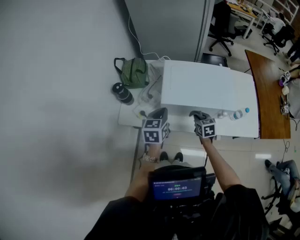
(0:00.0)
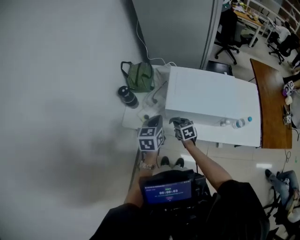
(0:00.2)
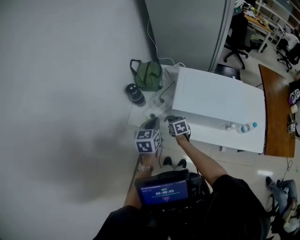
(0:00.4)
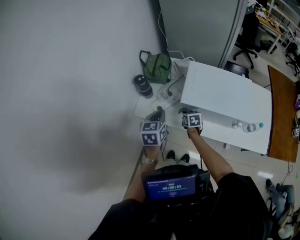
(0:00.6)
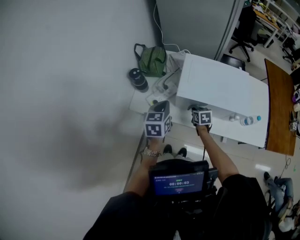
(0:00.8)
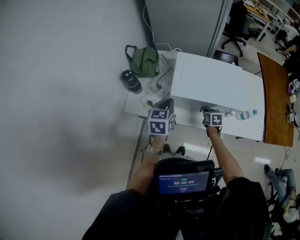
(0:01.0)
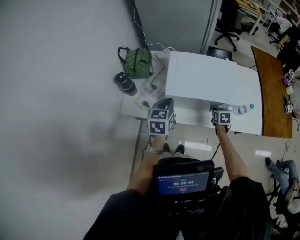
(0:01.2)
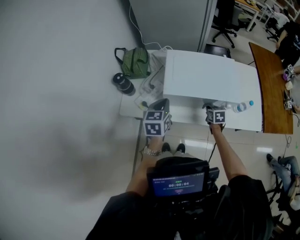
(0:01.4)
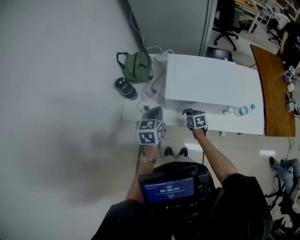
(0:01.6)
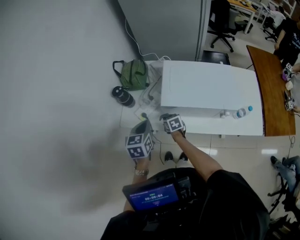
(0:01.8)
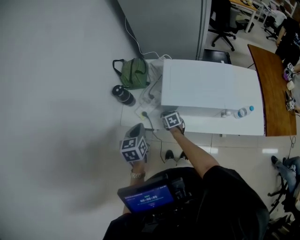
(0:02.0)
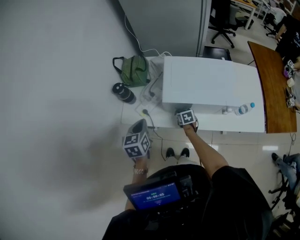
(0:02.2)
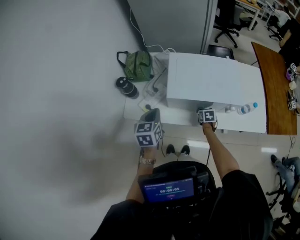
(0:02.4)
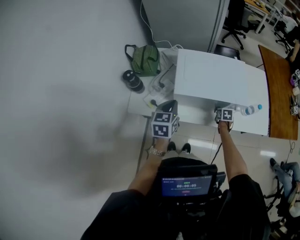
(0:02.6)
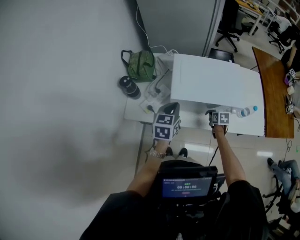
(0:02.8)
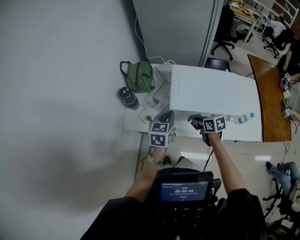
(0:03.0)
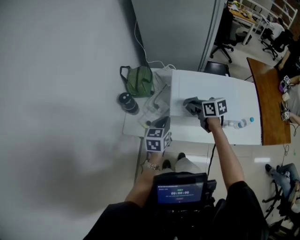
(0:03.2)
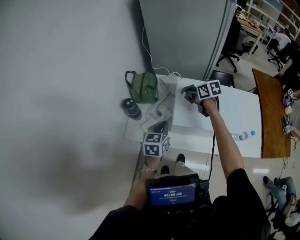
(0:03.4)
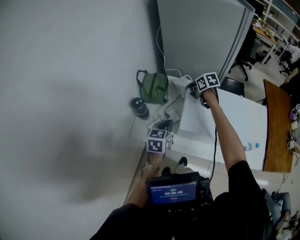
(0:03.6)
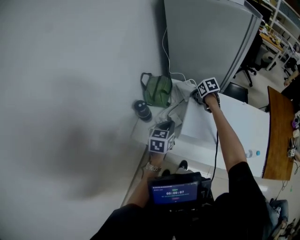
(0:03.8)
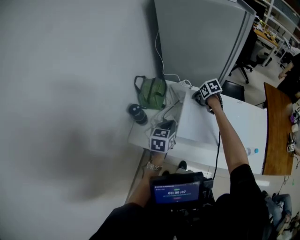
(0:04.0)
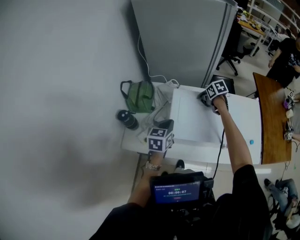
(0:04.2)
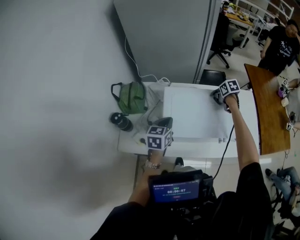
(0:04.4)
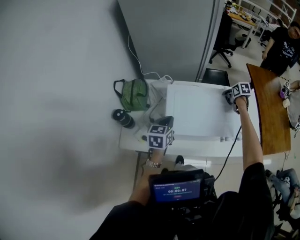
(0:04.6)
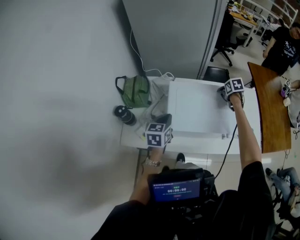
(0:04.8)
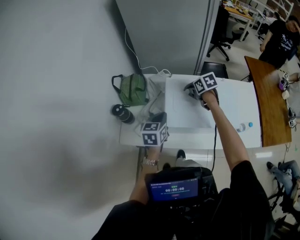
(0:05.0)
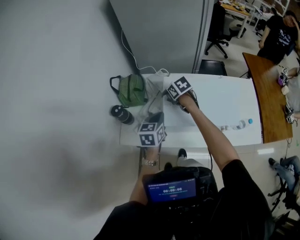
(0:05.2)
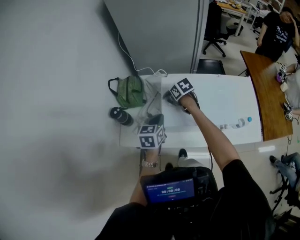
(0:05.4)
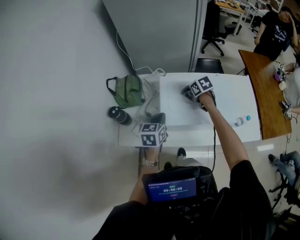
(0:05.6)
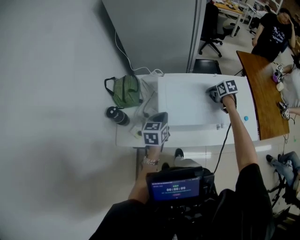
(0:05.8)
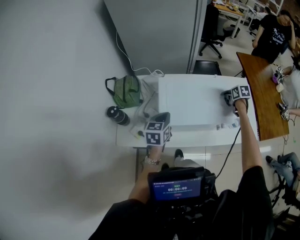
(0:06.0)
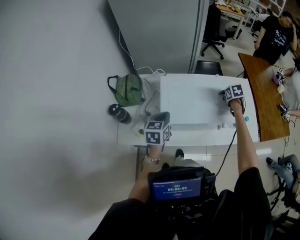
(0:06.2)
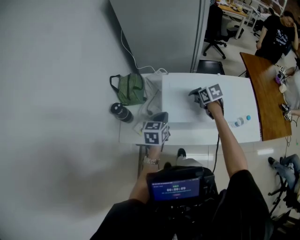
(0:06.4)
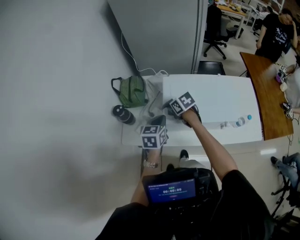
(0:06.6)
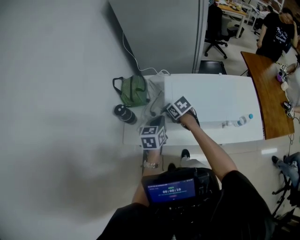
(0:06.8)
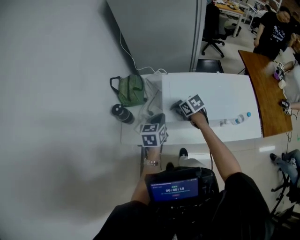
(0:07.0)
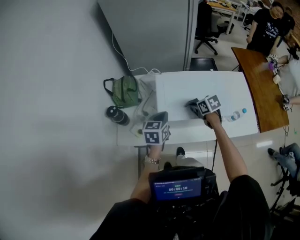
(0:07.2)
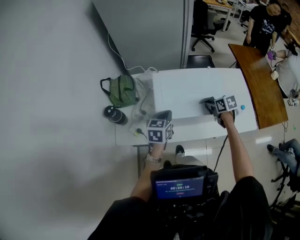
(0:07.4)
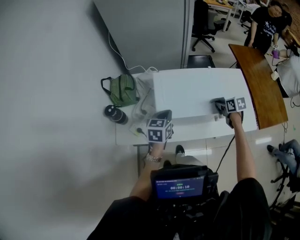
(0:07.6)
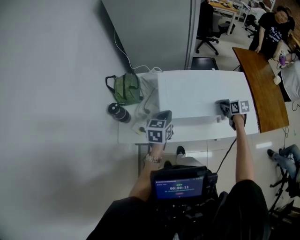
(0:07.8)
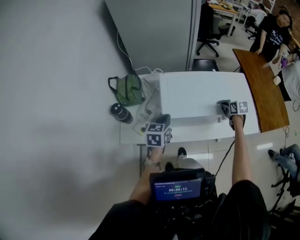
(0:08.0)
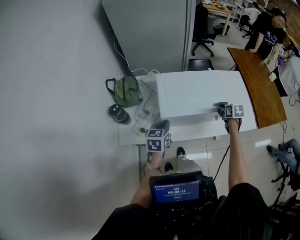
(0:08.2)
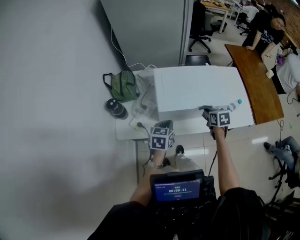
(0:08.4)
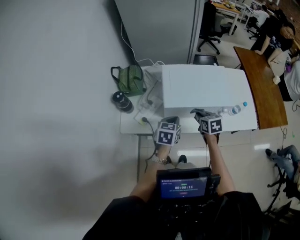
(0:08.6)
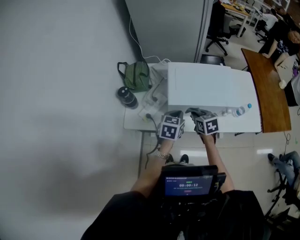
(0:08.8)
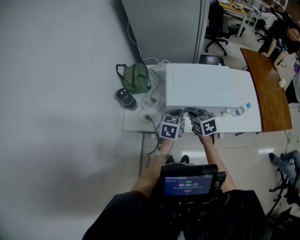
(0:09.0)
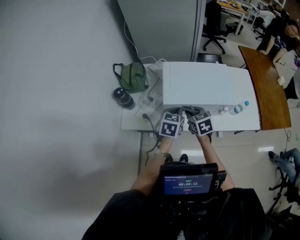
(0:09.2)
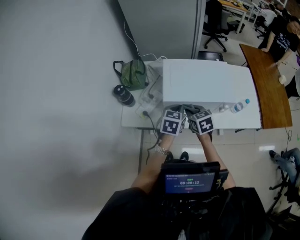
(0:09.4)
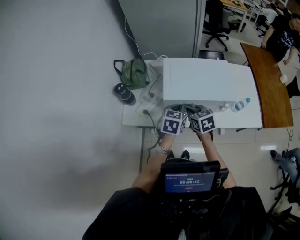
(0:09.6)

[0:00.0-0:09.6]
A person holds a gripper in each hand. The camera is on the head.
0:00.0 to 0:01.6: The right gripper swings left and right, about 30 cm each way, with 2 reversals. Meanwhile the left gripper moves left and right over roughly 10 cm, changing direction 2 times.
0:01.6 to 0:03.2: The right gripper swings left and right, approximately 30 cm each way, with 2 reversals, and changes its angle by about 20 degrees. The left gripper goes left and right, roughly 15 cm each way, reversing 2 times.
0:03.2 to 0:04.8: The right gripper ends up approximately 35 cm from where it was, and tips its fingers downward by about 30 degrees, while the left gripper changes place by approximately 10 cm.
0:06.4 to 0:08.0: The right gripper moves roughly 20 cm, and turns by approximately 20 degrees.
0:08.0 to 0:09.6: The left gripper heads to the right and backward, covering about 10 cm. The right gripper shifts about 30 cm to the left and backward, and changes its angle by approximately 30 degrees.

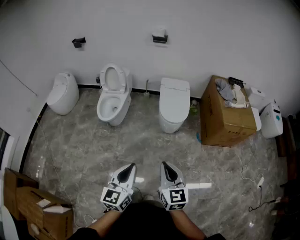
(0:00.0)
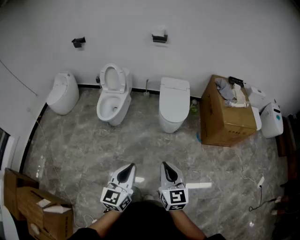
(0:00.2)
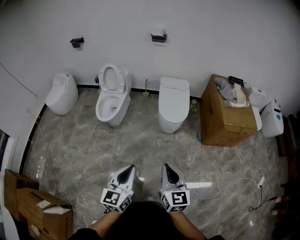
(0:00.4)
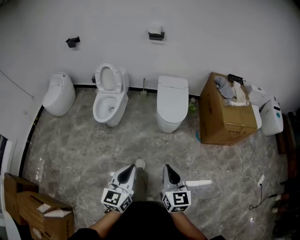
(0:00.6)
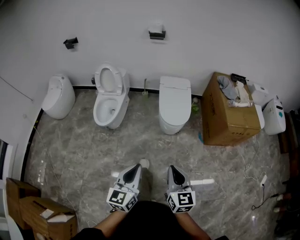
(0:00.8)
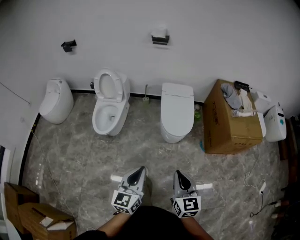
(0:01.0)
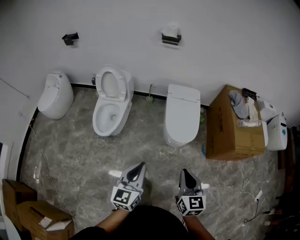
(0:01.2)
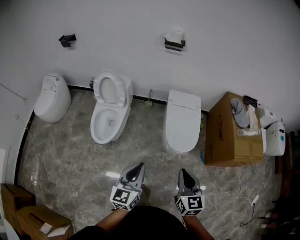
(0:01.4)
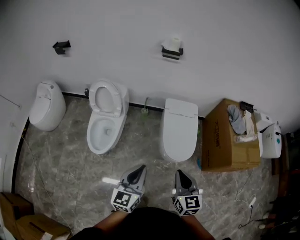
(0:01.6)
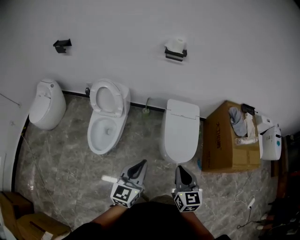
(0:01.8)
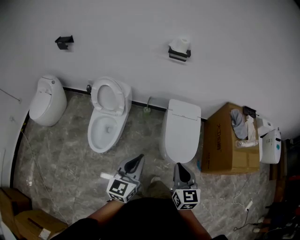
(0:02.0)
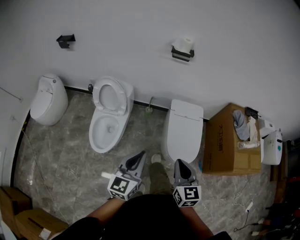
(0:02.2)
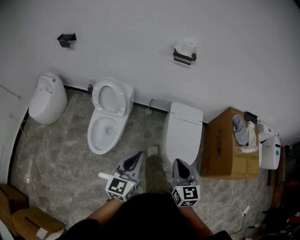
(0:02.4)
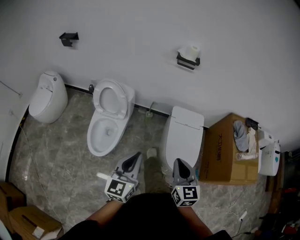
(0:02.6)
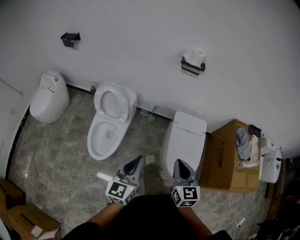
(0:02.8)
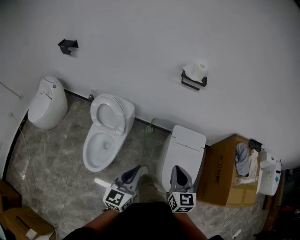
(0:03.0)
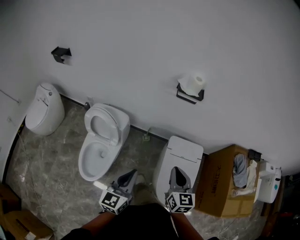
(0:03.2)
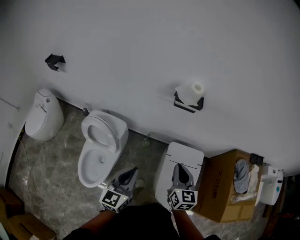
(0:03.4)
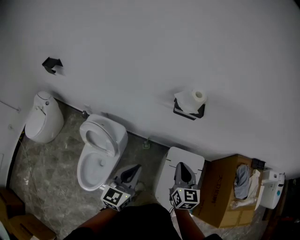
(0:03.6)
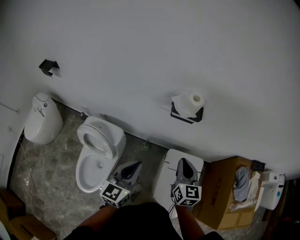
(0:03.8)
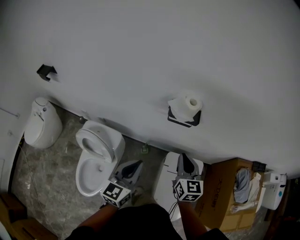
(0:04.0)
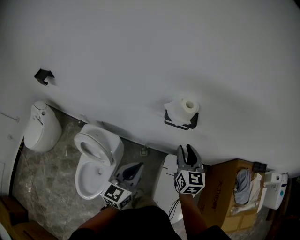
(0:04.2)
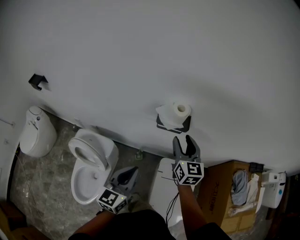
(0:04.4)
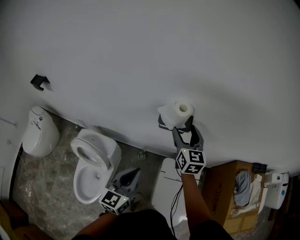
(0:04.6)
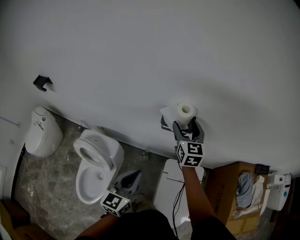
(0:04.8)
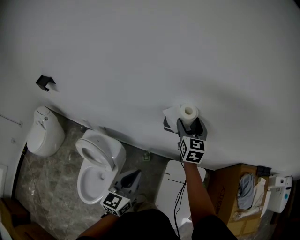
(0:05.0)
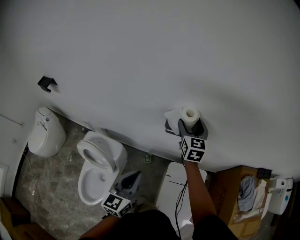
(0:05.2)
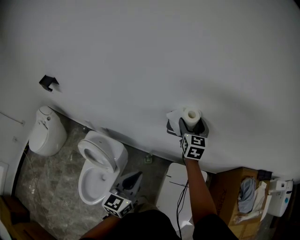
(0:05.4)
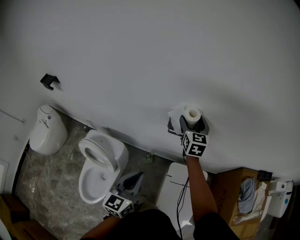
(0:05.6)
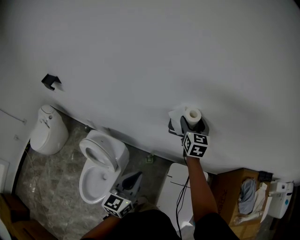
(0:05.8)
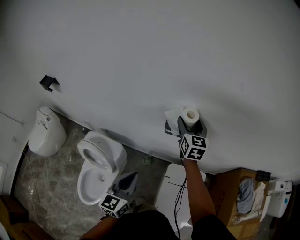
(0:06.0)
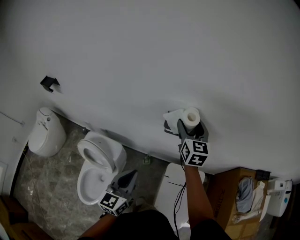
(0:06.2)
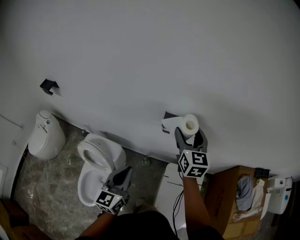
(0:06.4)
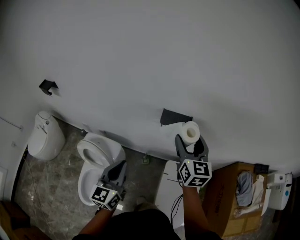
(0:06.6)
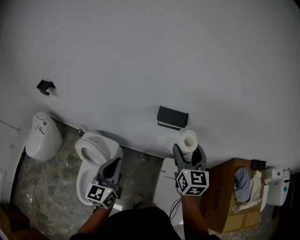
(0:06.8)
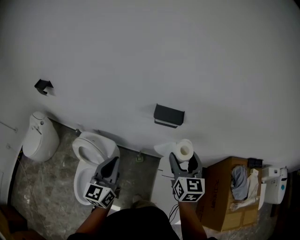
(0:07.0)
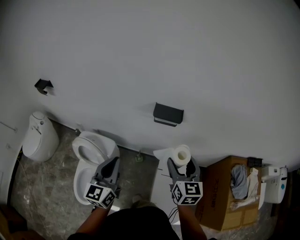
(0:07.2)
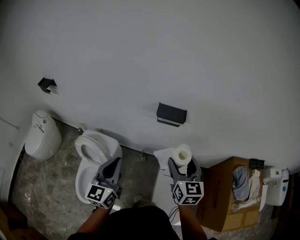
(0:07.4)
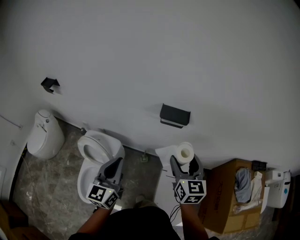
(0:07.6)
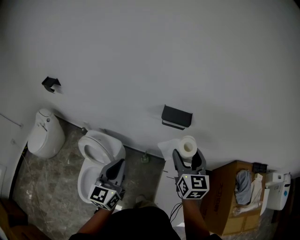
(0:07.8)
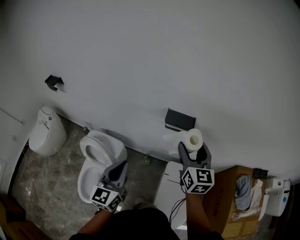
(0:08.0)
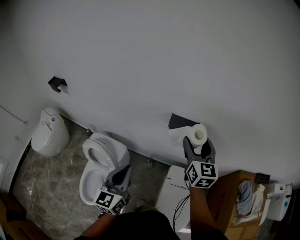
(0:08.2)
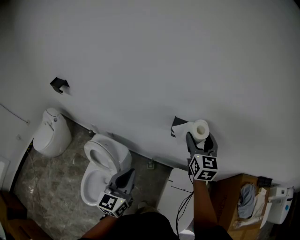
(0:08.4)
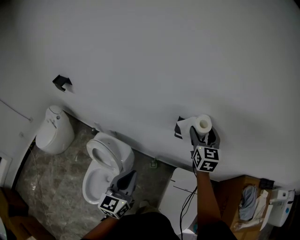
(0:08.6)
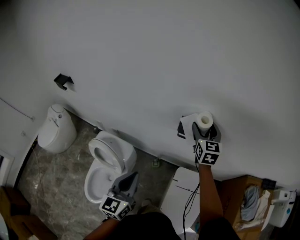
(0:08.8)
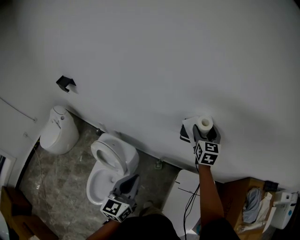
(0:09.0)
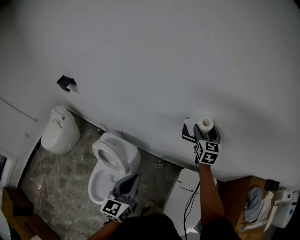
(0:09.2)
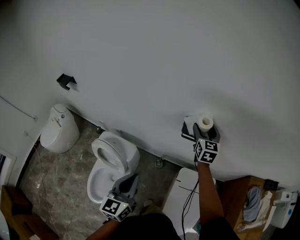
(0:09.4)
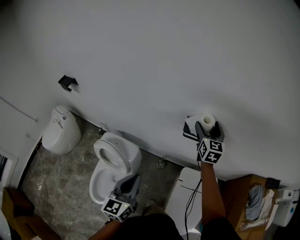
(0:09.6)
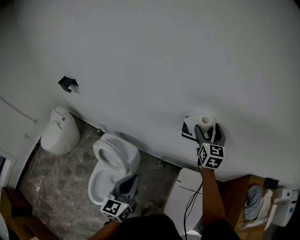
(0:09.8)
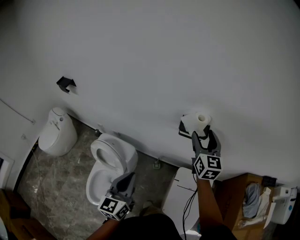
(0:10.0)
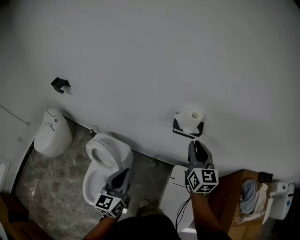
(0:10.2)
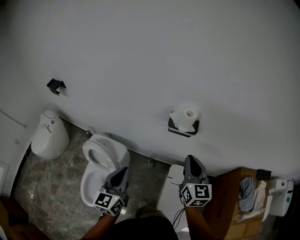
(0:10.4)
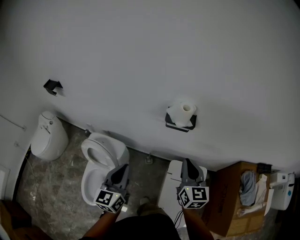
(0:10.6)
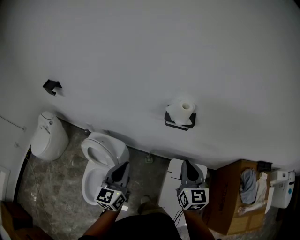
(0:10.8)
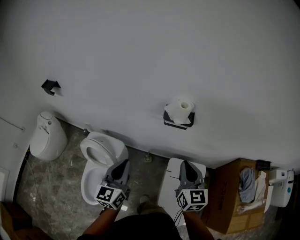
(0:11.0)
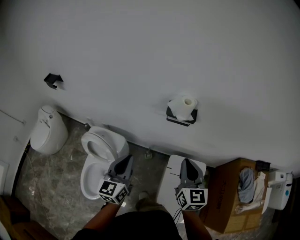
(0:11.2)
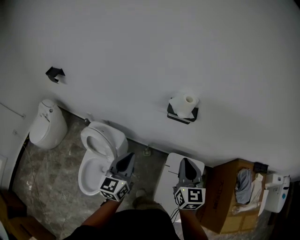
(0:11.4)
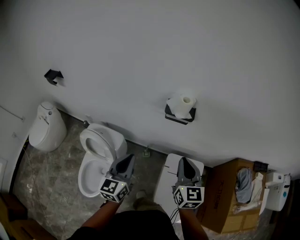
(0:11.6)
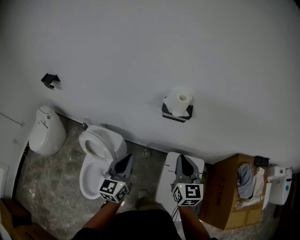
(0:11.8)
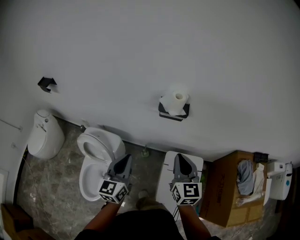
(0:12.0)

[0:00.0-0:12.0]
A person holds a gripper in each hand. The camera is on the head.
0:00.0 to 0:01.6: Both grippers are carried forward, approximately 50 cm.
0:01.6 to 0:03.0: The grippers both shift forward by some 30 cm.
0:03.0 to 0:04.4: The grippers both shift forward by about 40 cm. The right gripper opens its fingers.
0:04.4 to 0:06.0: The right gripper is displaced forward by some 10 cm.
0:06.0 to 0:07.6: The left gripper shifts roughly 10 cm upward and backward; the right gripper goes some 25 cm backward.
0:07.6 to 0:09.0: The left gripper ends up approximately 5 cm from where it was. Meanwhile the right gripper travels forward by some 25 cm.
0:09.0 to 0:10.4: The right gripper heads backward, covering some 25 cm, and closes its fingers.
0:10.4 to 0:12.0: The right gripper shifts about 5 cm backward.

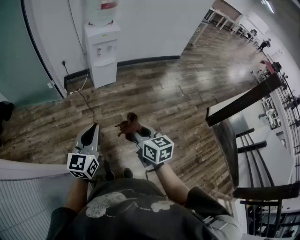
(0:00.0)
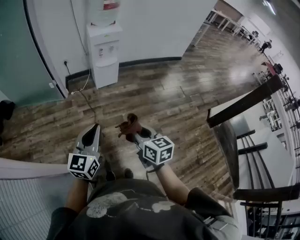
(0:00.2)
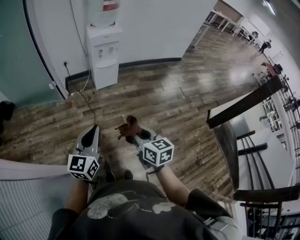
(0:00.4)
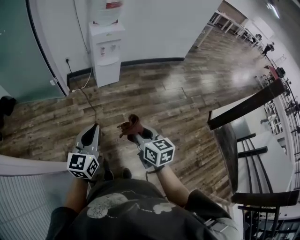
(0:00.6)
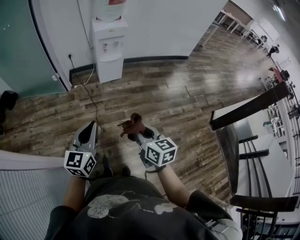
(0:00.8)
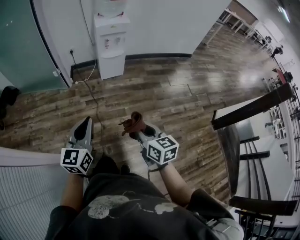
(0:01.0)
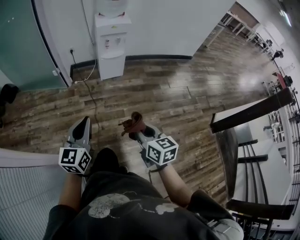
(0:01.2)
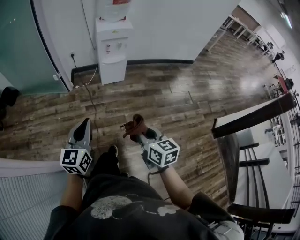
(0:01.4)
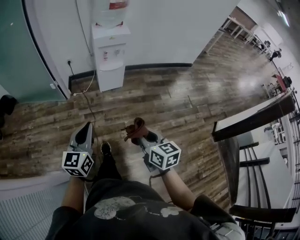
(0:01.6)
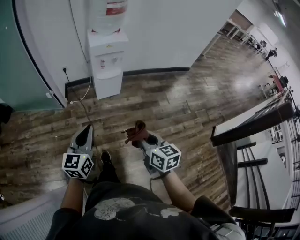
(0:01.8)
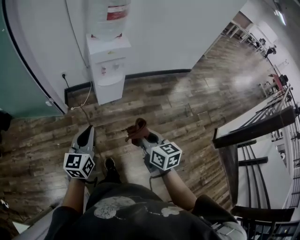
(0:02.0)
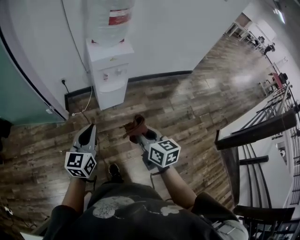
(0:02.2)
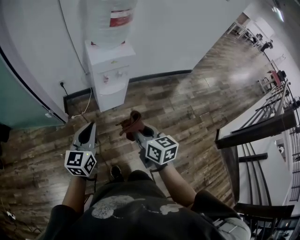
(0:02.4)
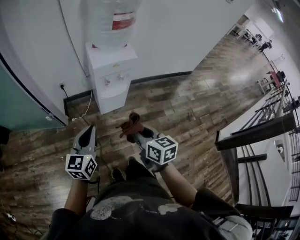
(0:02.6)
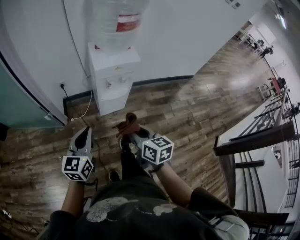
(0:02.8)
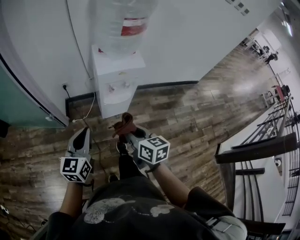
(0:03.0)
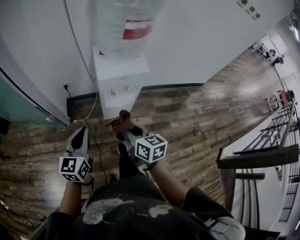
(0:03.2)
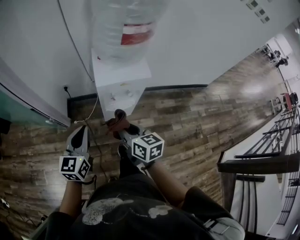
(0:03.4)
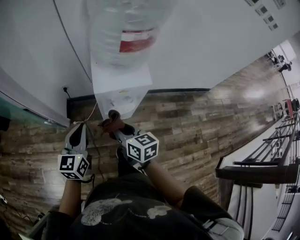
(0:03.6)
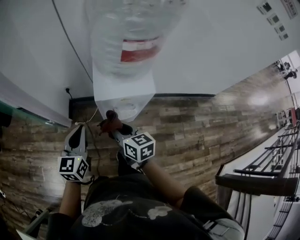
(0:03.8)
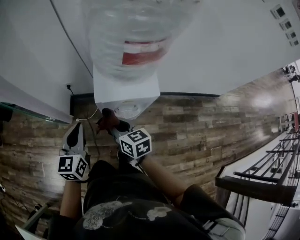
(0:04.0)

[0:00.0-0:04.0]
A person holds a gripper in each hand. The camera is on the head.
0:00.0 to 0:01.4: The right gripper moves roughly 5 cm. The left gripper shifts some 5 cm forward.
0:01.4 to 0:02.6: Both grippers move forward, some 35 cm.
0:02.6 to 0:04.0: The two grippers go some 30 cm forward. The right gripper rotates about 20 degrees; the left gripper changes its angle by roughly 20 degrees.
